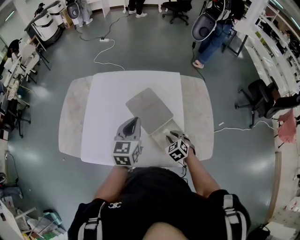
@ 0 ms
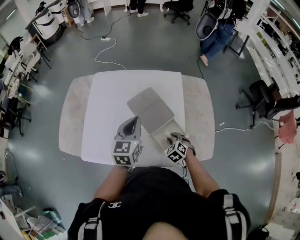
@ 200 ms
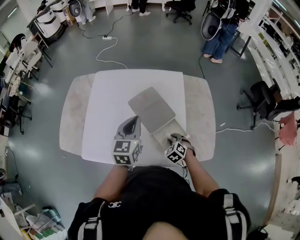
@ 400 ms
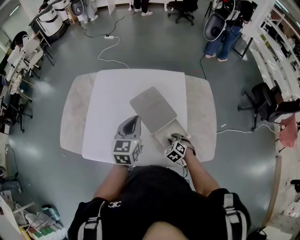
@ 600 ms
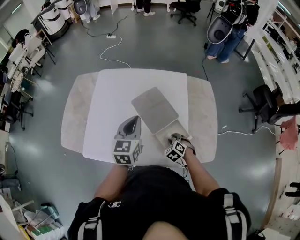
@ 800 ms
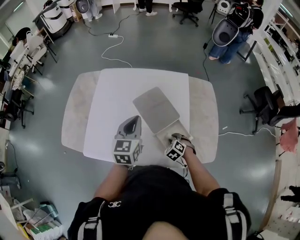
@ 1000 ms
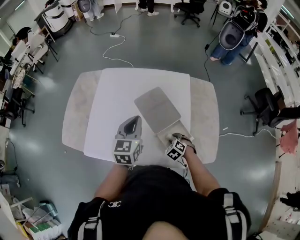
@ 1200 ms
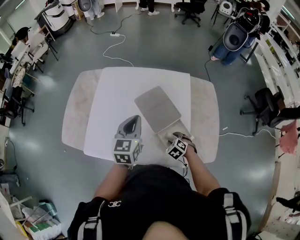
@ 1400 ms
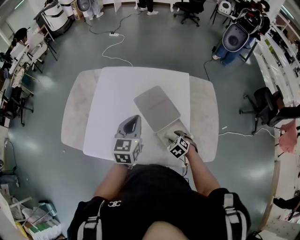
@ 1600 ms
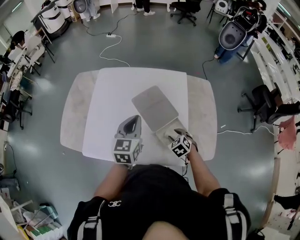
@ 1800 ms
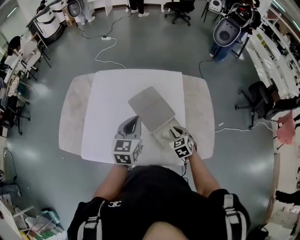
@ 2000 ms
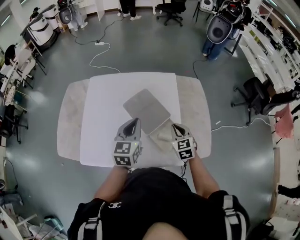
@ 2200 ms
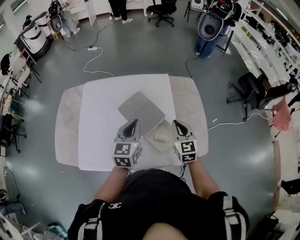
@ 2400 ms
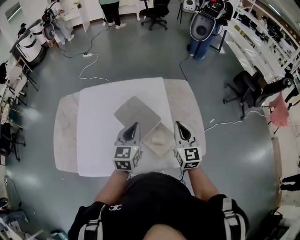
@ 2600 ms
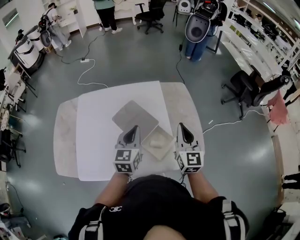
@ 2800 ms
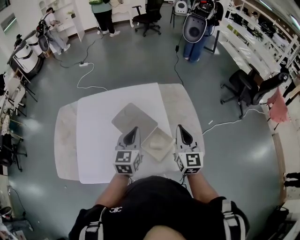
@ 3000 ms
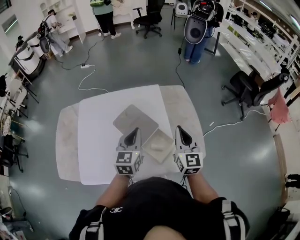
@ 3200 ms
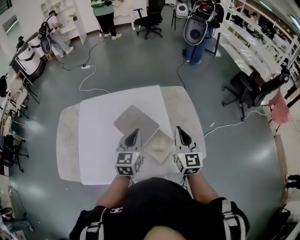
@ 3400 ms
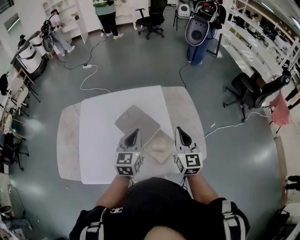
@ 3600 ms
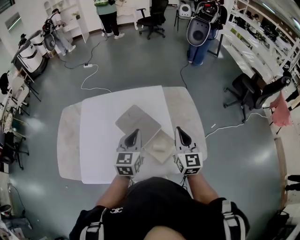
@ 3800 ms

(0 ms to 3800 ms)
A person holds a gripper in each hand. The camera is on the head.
0 ms - 1200 ms: The right gripper heads downward, covering about 5 cm.
1200 ms - 2600 ms: The right gripper goes some 30 cm upward, points its fingers some 60 degrees further upward, and closes its fingers. Meanwhile the left gripper heads to the right, covering roughly 5 cm.
2600 ms - 3800 ms: The grippers make only small movements.

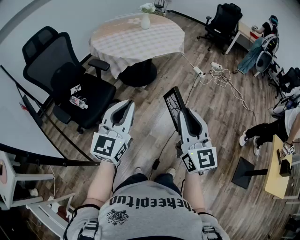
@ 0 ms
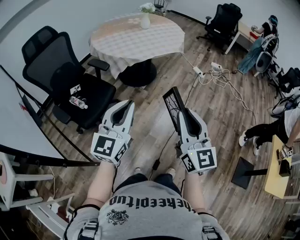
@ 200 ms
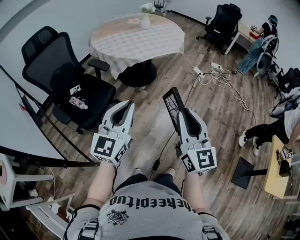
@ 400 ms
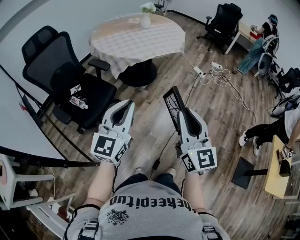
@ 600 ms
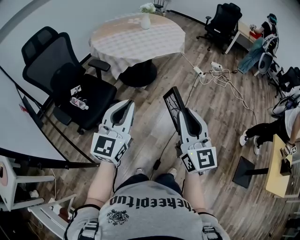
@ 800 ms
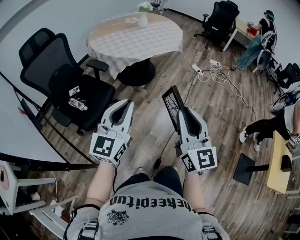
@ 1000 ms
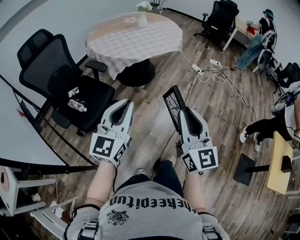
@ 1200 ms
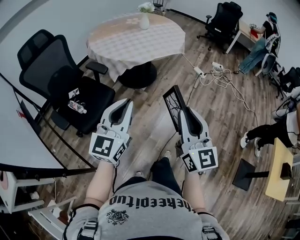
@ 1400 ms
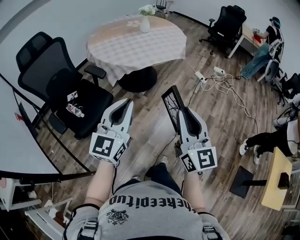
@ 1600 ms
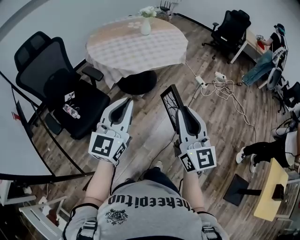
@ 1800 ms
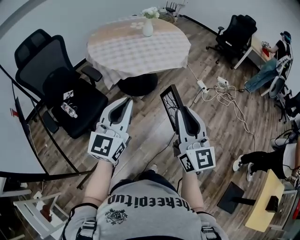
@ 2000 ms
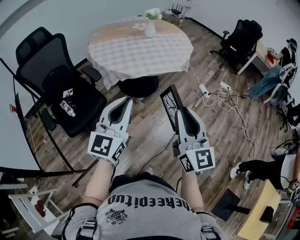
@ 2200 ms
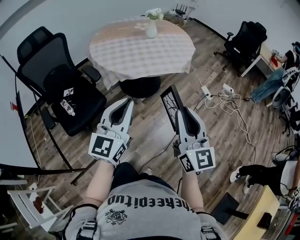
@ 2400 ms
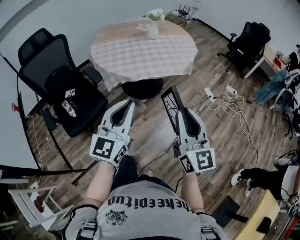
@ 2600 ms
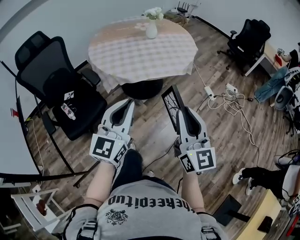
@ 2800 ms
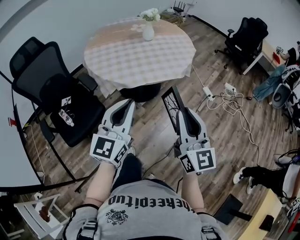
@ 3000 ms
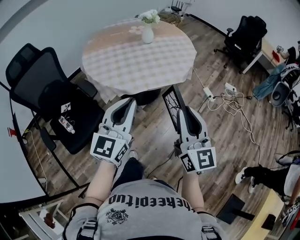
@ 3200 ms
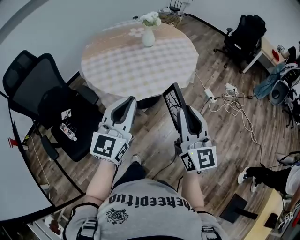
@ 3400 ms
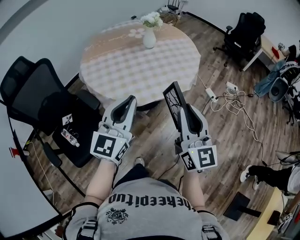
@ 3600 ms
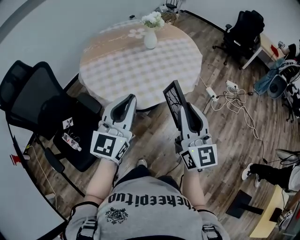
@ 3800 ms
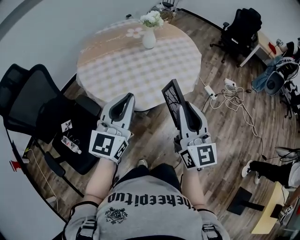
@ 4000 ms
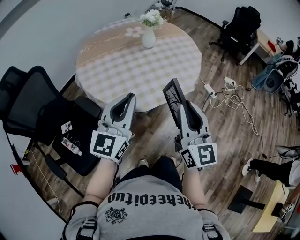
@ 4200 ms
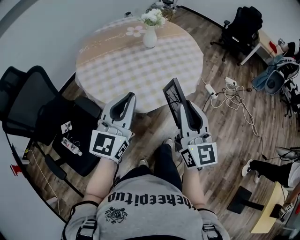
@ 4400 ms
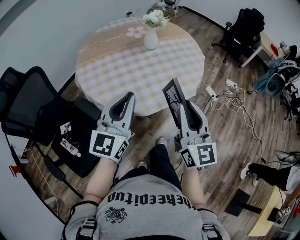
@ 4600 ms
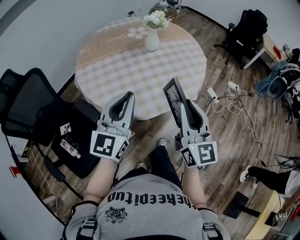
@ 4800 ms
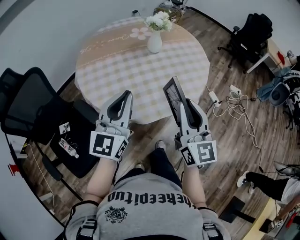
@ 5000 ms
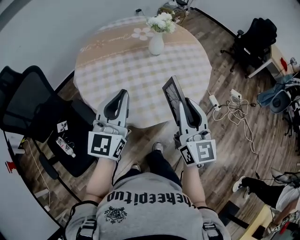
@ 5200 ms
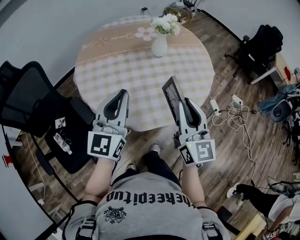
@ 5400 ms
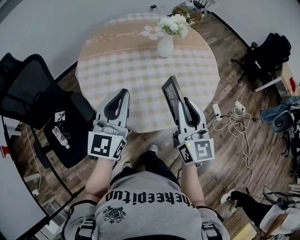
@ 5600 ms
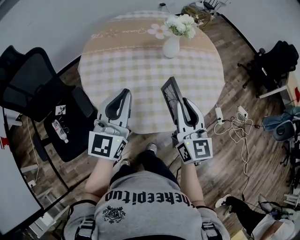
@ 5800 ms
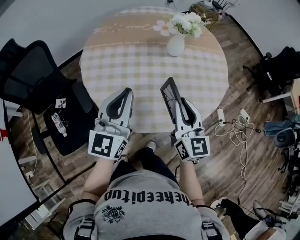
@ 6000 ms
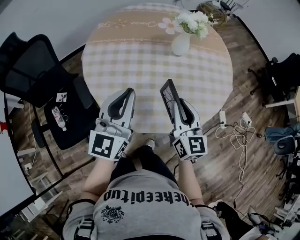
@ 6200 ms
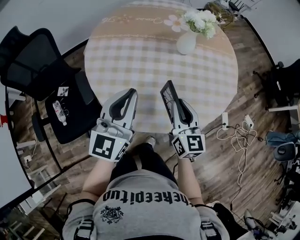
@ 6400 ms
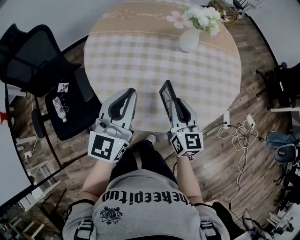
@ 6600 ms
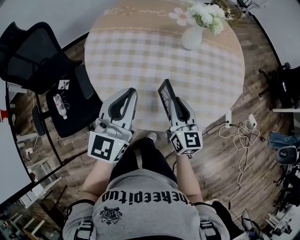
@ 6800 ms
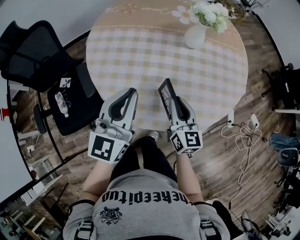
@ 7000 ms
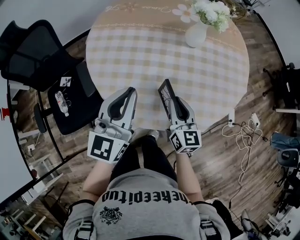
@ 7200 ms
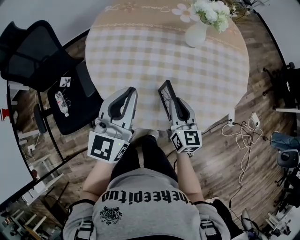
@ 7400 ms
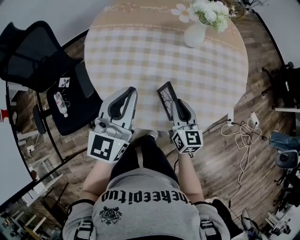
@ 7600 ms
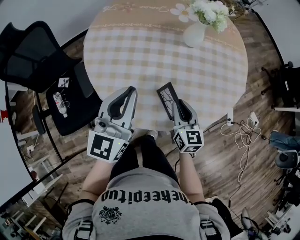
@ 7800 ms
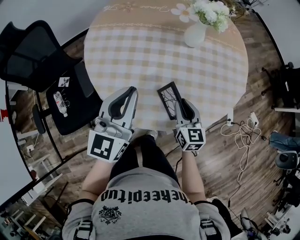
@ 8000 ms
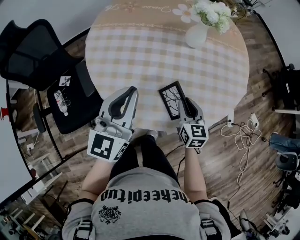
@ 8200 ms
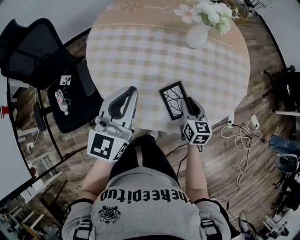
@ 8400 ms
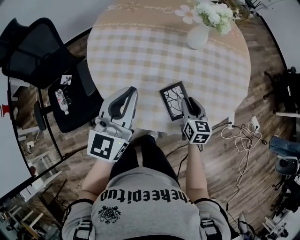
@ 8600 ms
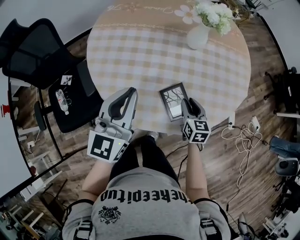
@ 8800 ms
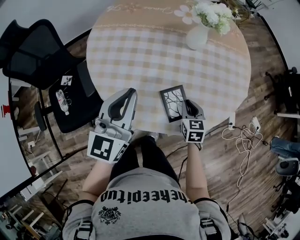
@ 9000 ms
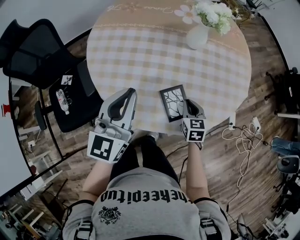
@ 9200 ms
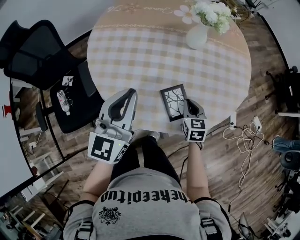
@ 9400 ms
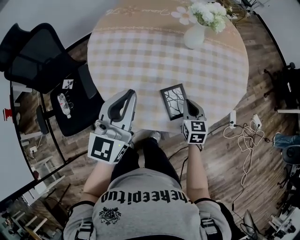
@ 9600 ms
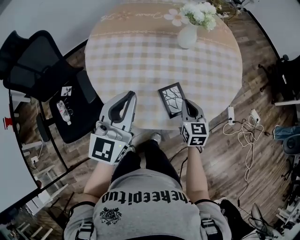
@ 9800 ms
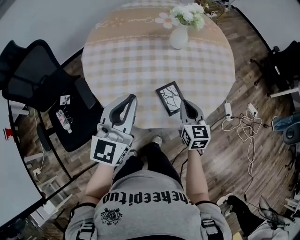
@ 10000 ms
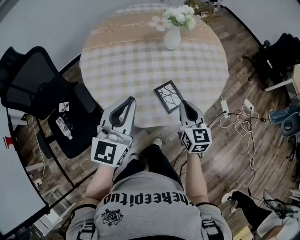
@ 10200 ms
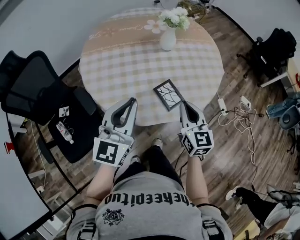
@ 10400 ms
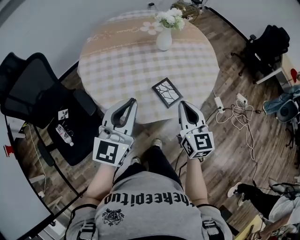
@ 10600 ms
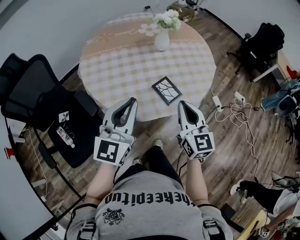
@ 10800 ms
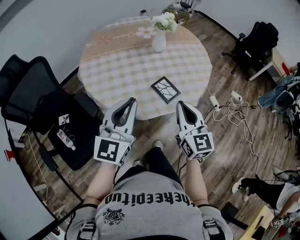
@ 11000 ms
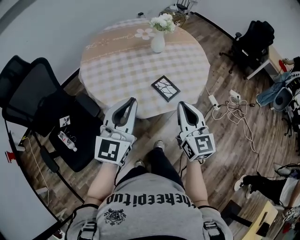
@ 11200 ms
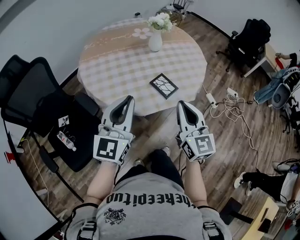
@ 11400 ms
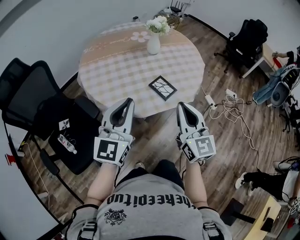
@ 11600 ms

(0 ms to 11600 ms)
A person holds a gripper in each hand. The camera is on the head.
0 ms - 1400 ms: Both grippers move forward, about 5 cm.
1400 ms - 2800 ms: Both grippers move forward and to the right, approximately 25 cm.
2800 ms - 4400 ms: The grippers both shift forward and to the left by approximately 25 cm.
4400 ms - 5800 ms: The two grippers go approximately 20 cm forward. The right gripper changes its angle by approximately 20 degrees. Meanwhile the left gripper turns by some 20 degrees.
5800 ms - 7200 ms: The right gripper goes roughly 15 cm downward. Meanwhile the left gripper moves downward, roughly 5 cm.
7200 ms - 8800 ms: The right gripper heads downward and to the right, covering about 10 cm, and turns by approximately 20 degrees.
8800 ms - 10200 ms: The left gripper shifts some 5 cm backward, while the right gripper shifts roughly 15 cm upward and backward, and closes its fingers.
10200 ms - 11600 ms: The left gripper is displaced backward by approximately 15 cm. The right gripper goes roughly 25 cm backward and upward, and swivels some 20 degrees.

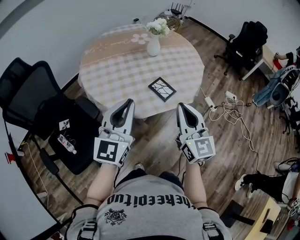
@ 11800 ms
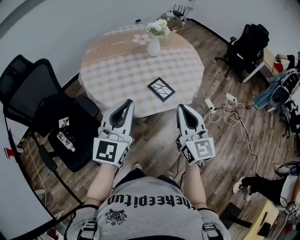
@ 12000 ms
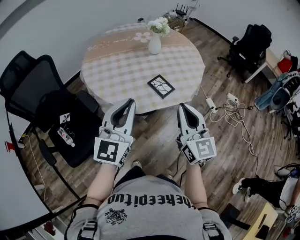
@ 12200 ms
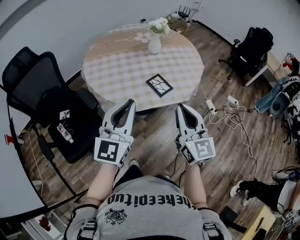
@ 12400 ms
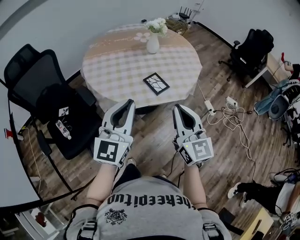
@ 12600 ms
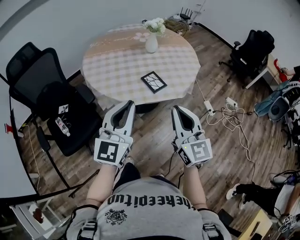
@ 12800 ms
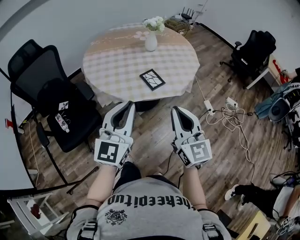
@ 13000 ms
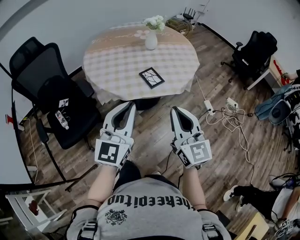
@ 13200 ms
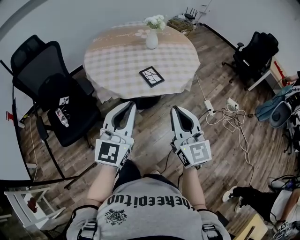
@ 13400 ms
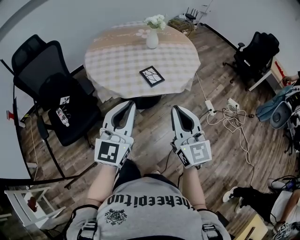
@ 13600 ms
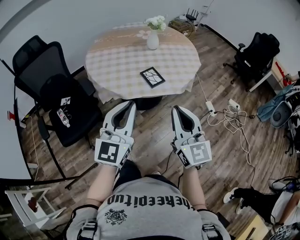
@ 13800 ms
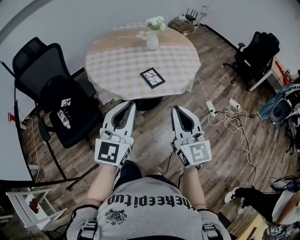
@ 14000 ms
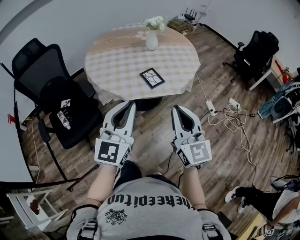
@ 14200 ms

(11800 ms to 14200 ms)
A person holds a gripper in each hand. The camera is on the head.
11800 ms - 13000 ms: The two grippers go roughly 15 cm backward and to the right.
13000 ms - 14200 ms: The grippers stay close to where they were, moving slightly.

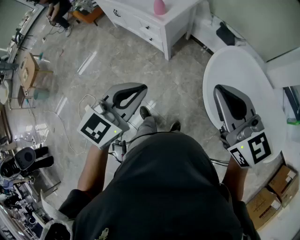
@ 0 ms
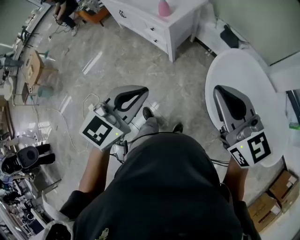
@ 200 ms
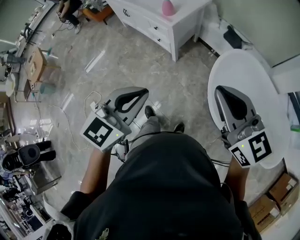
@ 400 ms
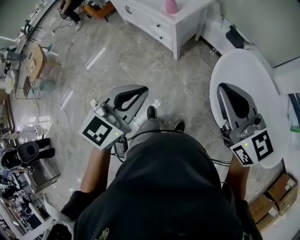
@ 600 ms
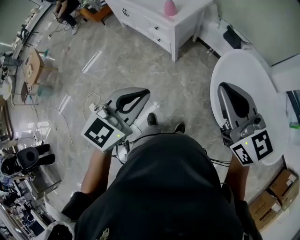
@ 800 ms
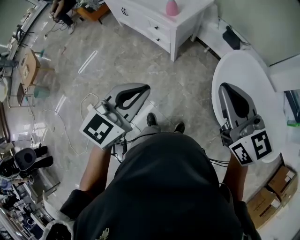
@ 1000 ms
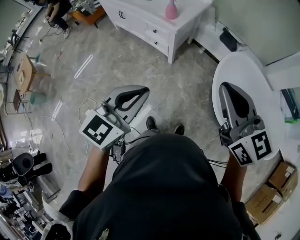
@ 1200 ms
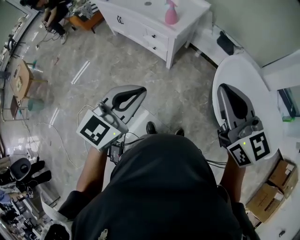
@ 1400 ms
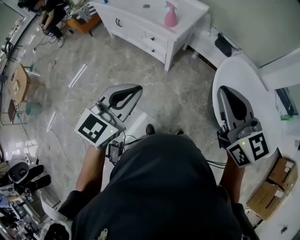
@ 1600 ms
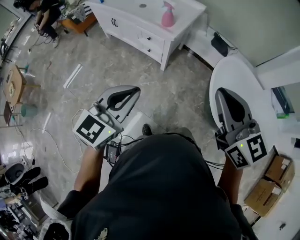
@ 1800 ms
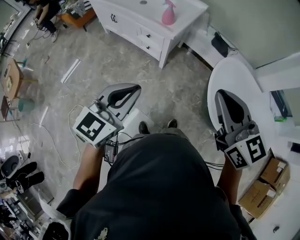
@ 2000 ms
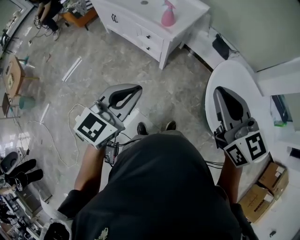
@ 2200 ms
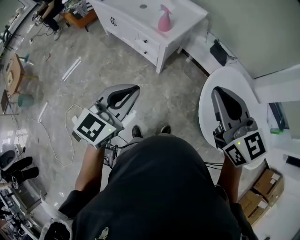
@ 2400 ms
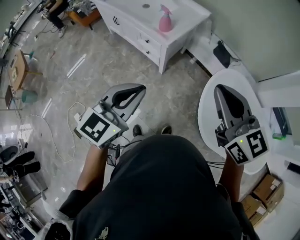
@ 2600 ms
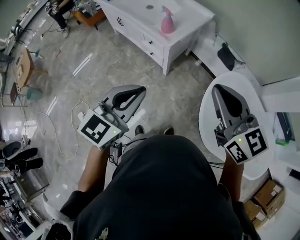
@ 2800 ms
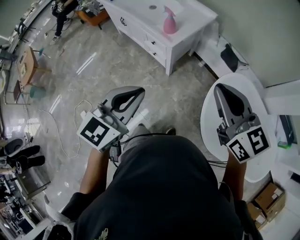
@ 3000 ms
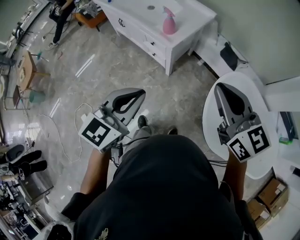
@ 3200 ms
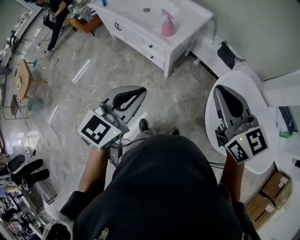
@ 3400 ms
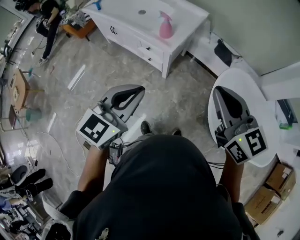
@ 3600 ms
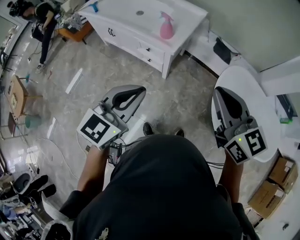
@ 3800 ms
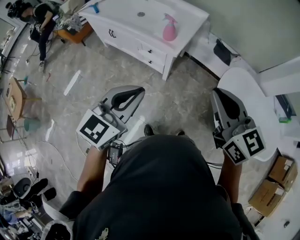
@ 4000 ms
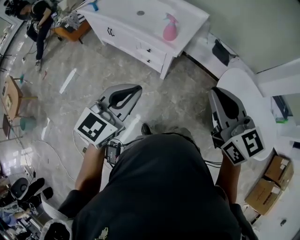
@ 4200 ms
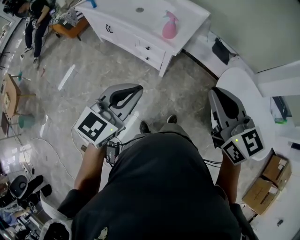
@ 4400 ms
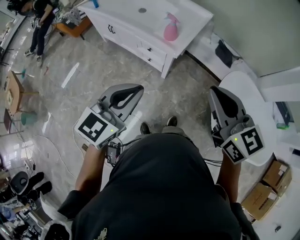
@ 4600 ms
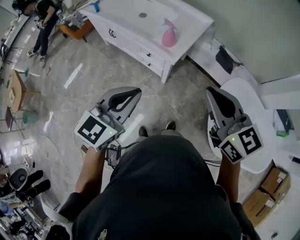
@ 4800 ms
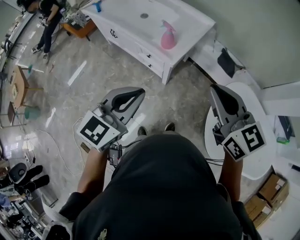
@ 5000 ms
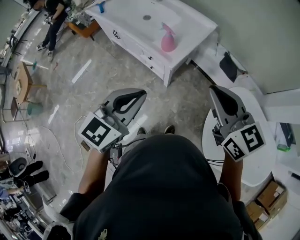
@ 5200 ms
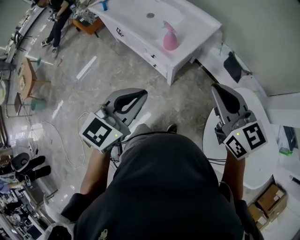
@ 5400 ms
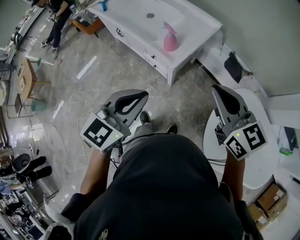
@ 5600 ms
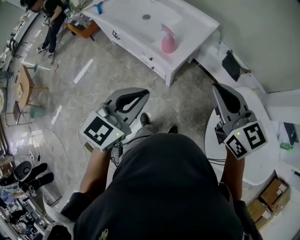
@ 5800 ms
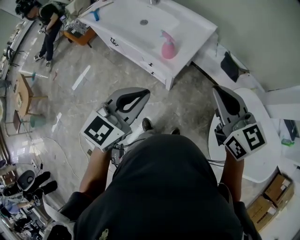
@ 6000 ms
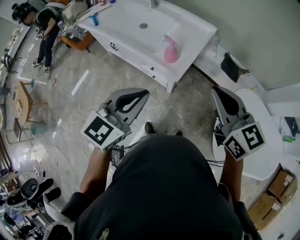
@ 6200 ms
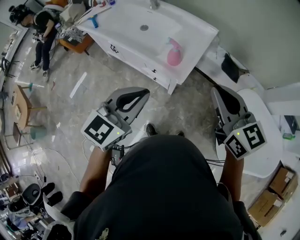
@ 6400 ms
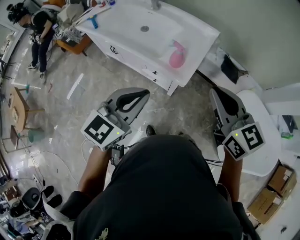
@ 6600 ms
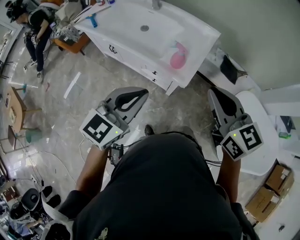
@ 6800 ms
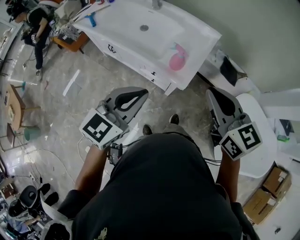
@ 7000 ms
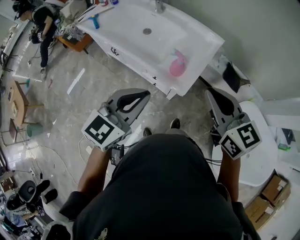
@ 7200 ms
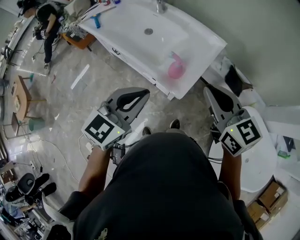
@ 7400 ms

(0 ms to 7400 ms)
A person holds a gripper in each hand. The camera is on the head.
0 ms - 1400 ms: The grippers both shift to the left by roughly 15 cm.
1400 ms - 3000 ms: The grippers both shift forward and to the right by about 15 cm.
3000 ms - 4400 ms: Both grippers move to the left, roughly 15 cm.
4400 ms - 6000 ms: Both grippers travel together forward and to the right, some 15 cm.
6000 ms - 7400 ms: Both grippers move forward and to the left, roughly 15 cm.
